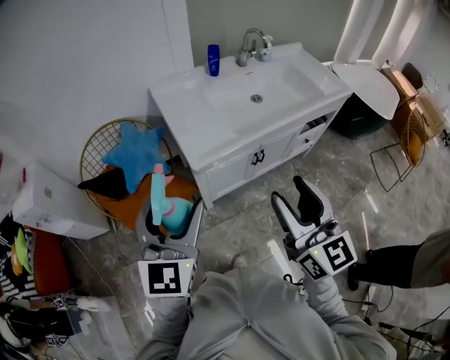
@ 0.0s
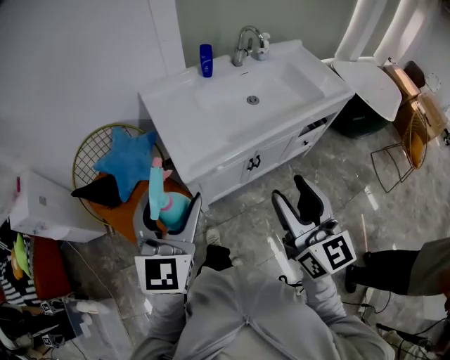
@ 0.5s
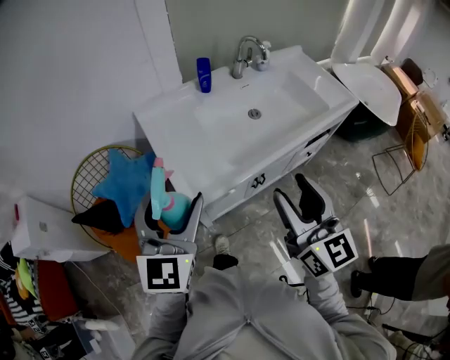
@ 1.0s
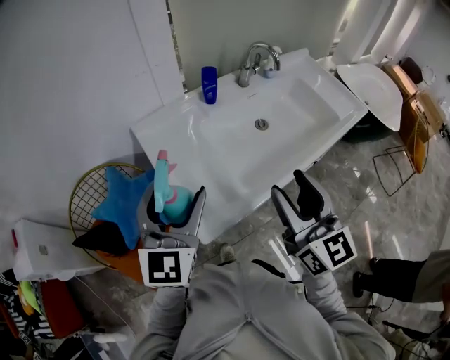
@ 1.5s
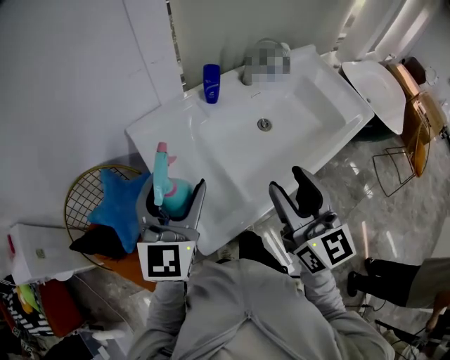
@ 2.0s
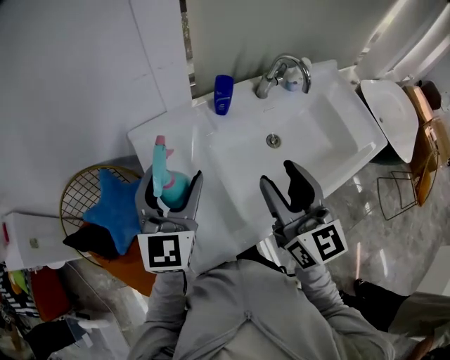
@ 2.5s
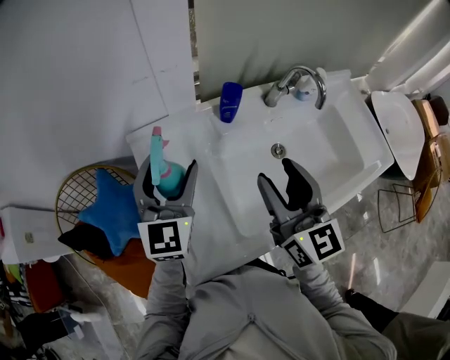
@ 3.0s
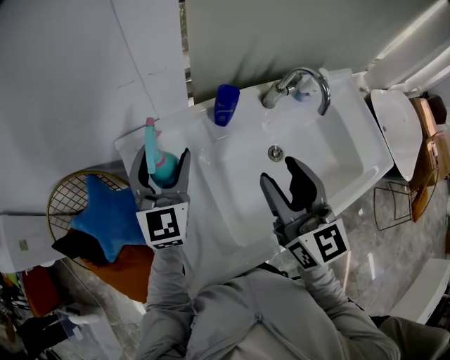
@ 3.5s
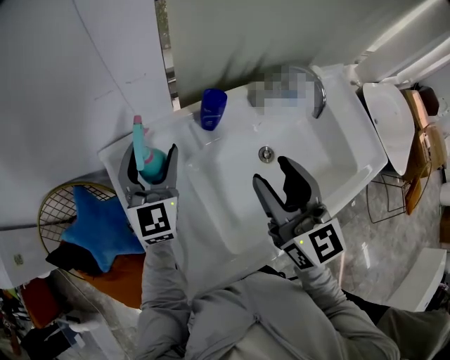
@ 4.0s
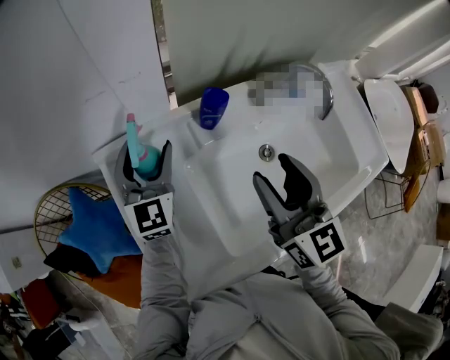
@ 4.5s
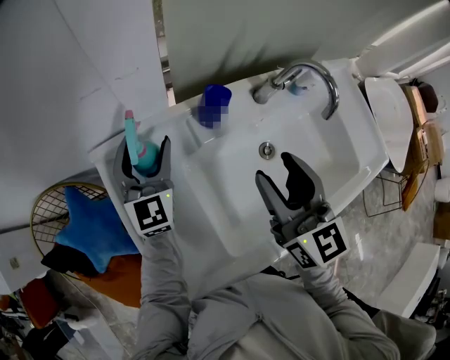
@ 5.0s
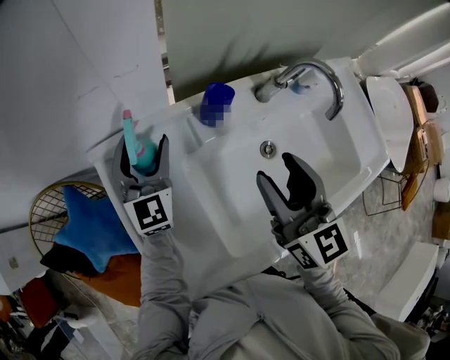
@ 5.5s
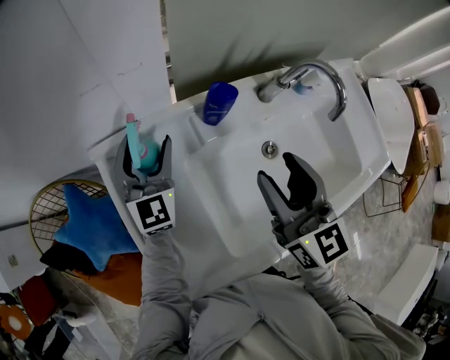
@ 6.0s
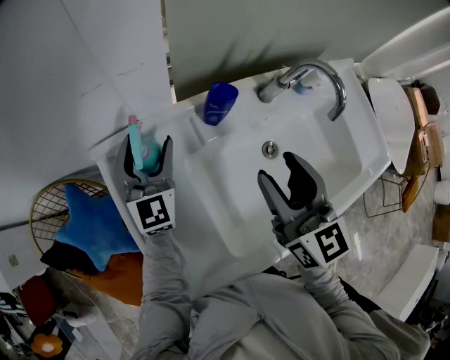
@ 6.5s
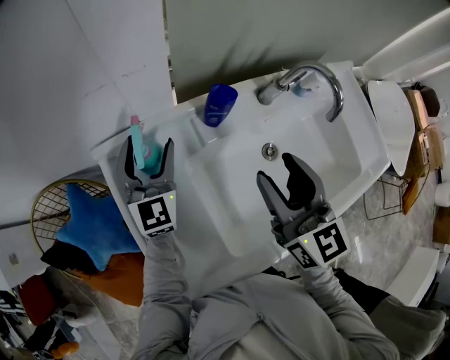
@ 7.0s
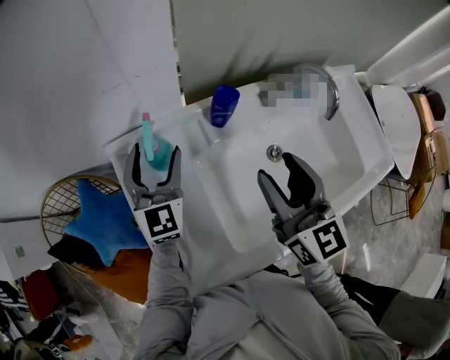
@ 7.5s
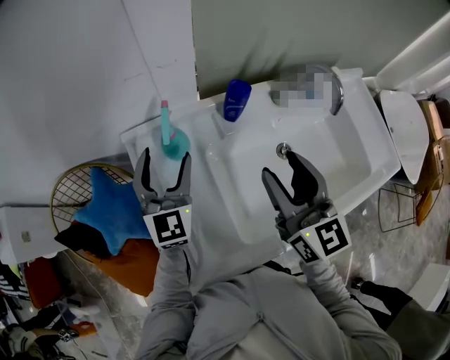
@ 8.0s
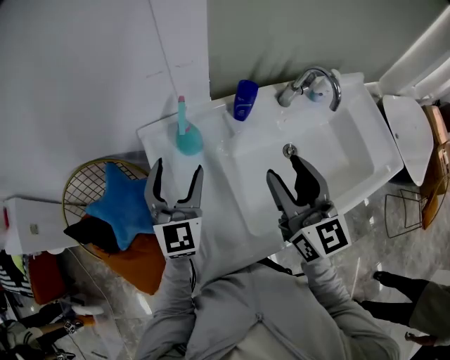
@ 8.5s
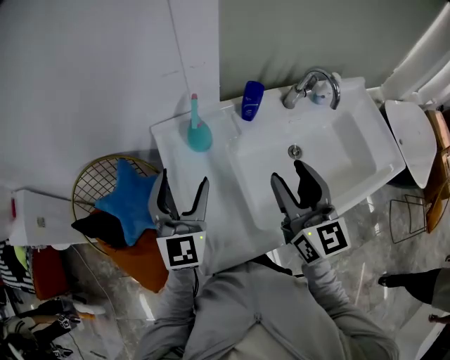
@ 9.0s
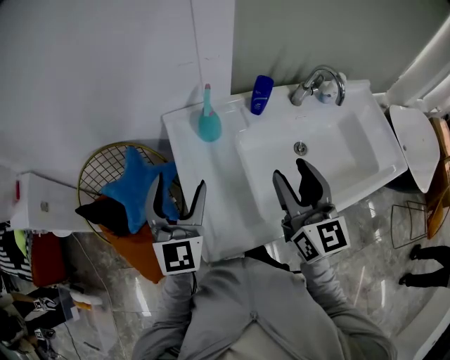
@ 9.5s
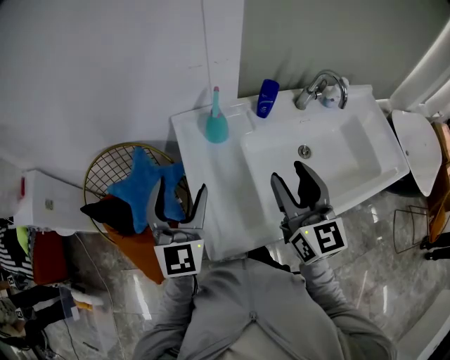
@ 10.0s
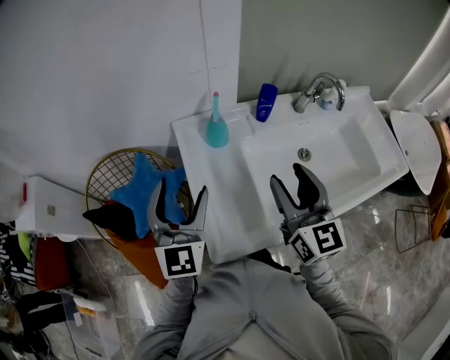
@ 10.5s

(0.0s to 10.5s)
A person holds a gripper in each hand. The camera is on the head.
0.0s - 2.0s: The two grippers go some 35 cm forward.
2.0s - 4.0s: The left gripper moves forward and downward, some 25 cm, while the right gripper shifts some 20 cm forward.
4.0s - 6.5s: The left gripper moves some 5 cm.
6.5s - 8.5s: The right gripper moves backward, approximately 5 cm. Meanwhile the left gripper travels backward and upward by approximately 15 cm.
8.5s - 10.5s: The right gripper goes roughly 10 cm backward and to the left; the left gripper shifts roughly 15 cm backward, to the left and upward.

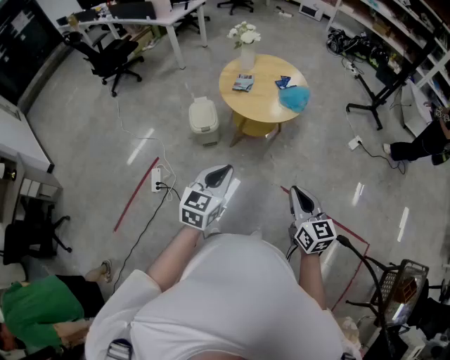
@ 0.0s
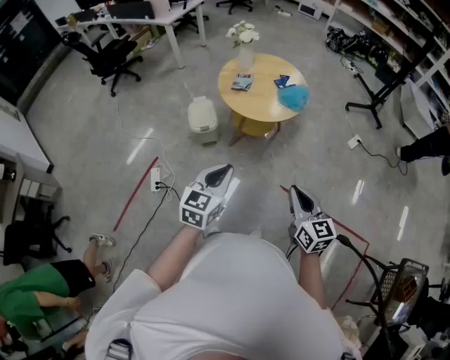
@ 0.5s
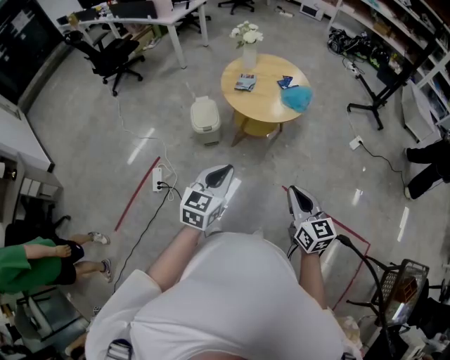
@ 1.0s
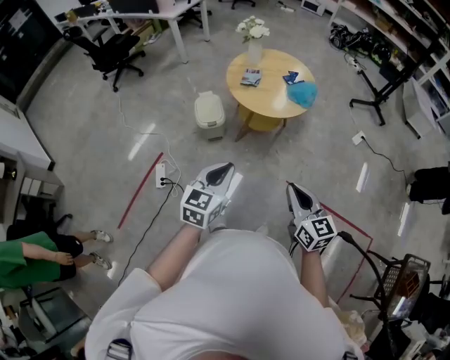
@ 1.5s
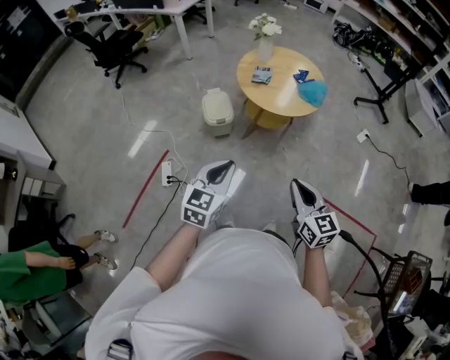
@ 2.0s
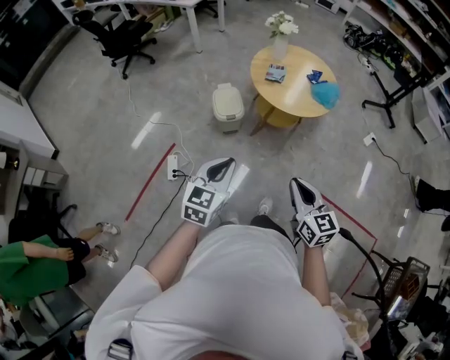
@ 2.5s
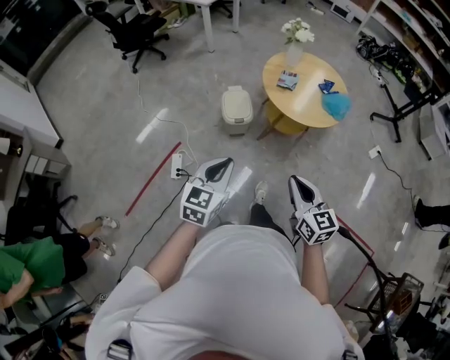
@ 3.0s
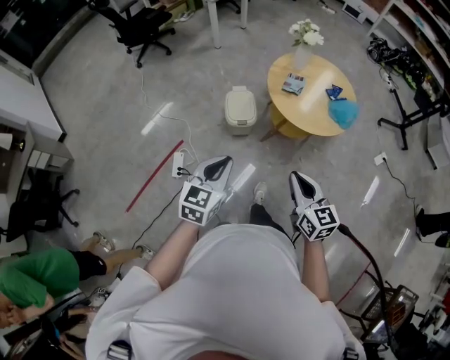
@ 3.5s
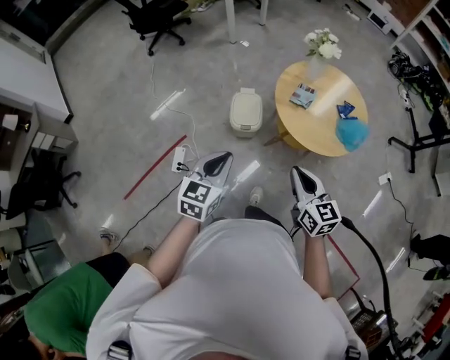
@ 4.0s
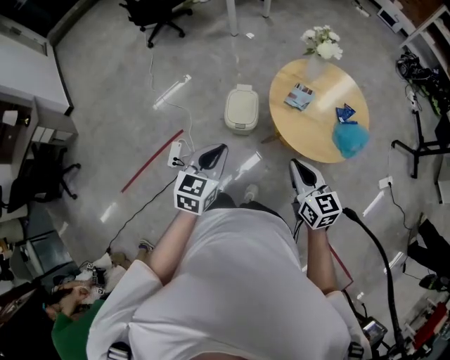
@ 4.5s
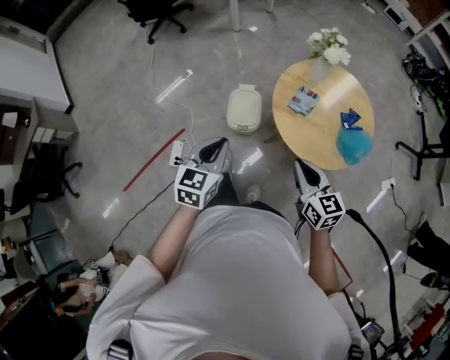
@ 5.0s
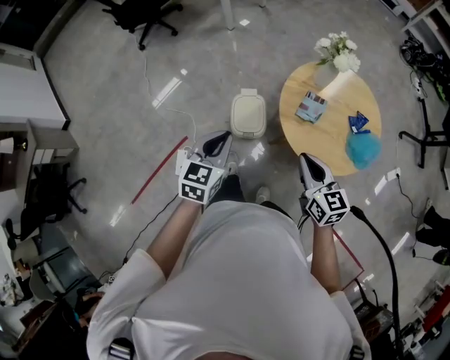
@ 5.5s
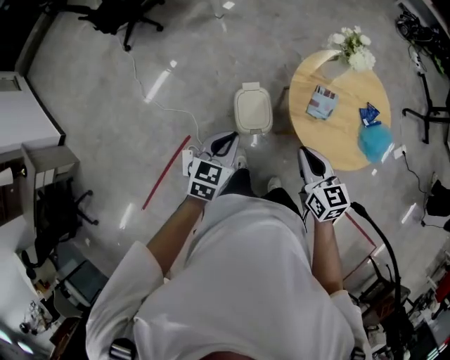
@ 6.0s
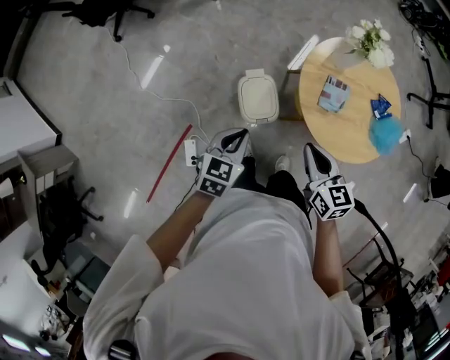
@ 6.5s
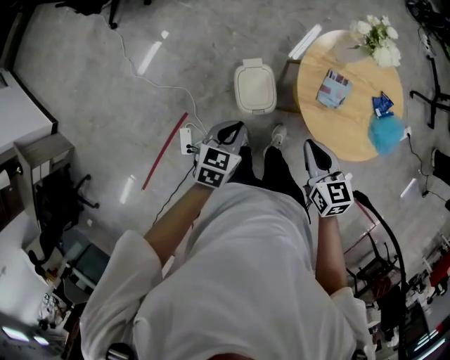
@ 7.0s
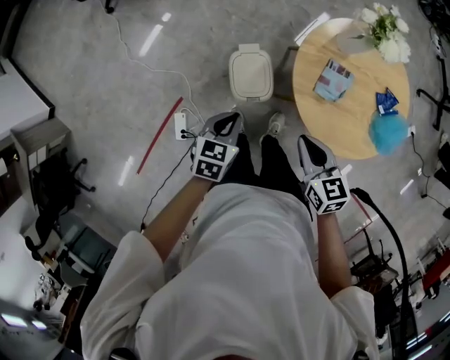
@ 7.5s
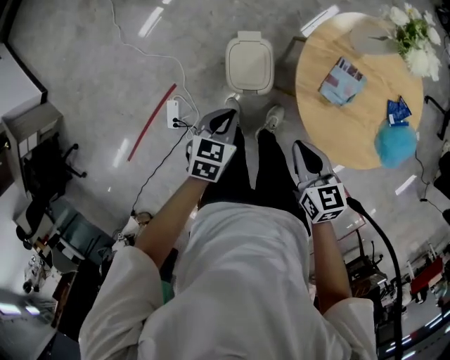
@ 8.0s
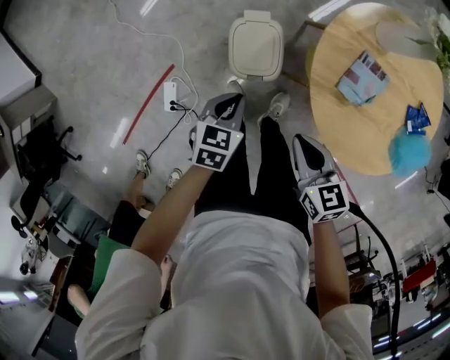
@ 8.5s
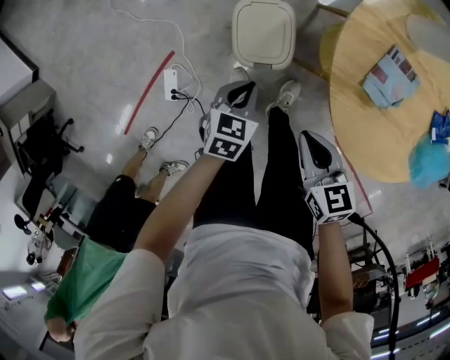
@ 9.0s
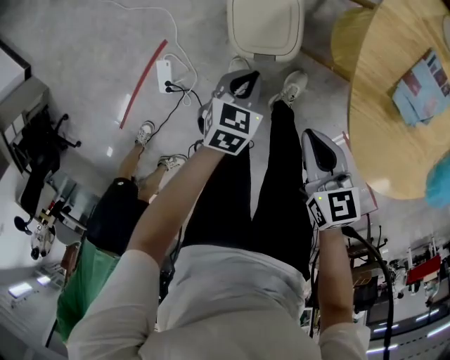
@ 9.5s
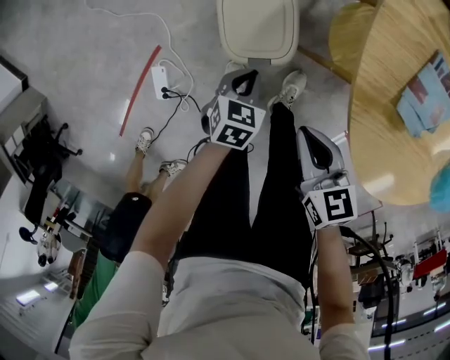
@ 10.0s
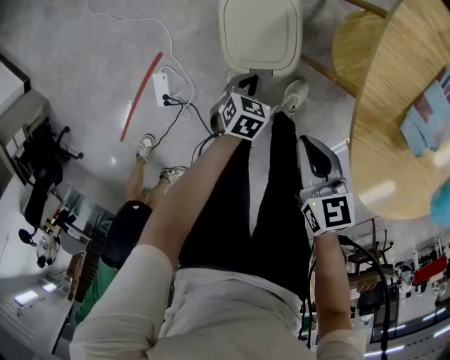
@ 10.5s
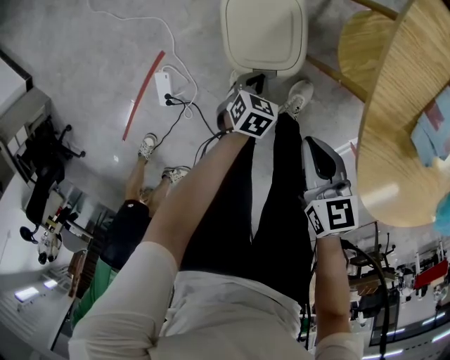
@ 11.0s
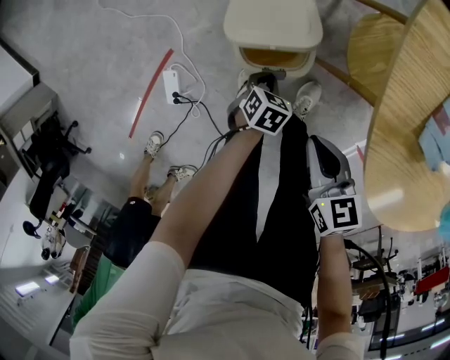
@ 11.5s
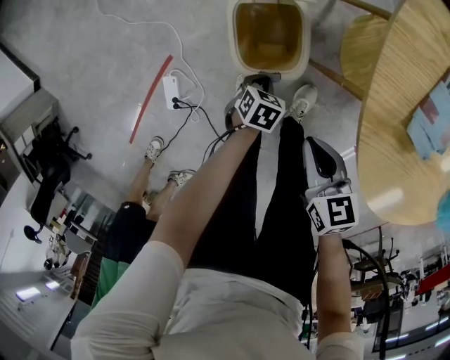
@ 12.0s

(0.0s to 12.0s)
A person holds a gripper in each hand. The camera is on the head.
0.0s - 2.0s: The grippers both shift to the left by some 15 cm.
2.0s - 4.0s: Both grippers travel together forward, about 25 cm.
4.0s - 6.0s: The grippers both shift forward by approximately 30 cm.
6.0s - 8.0s: The two grippers go roughly 20 cm downward.
8.0s - 10.0s: Both grippers travel together downward, roughly 25 cm.
10.0s - 12.0s: The left gripper heads downward, covering roughly 10 cm.

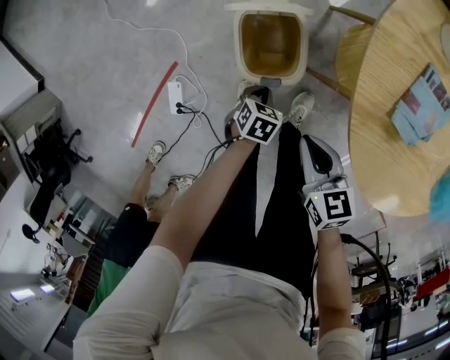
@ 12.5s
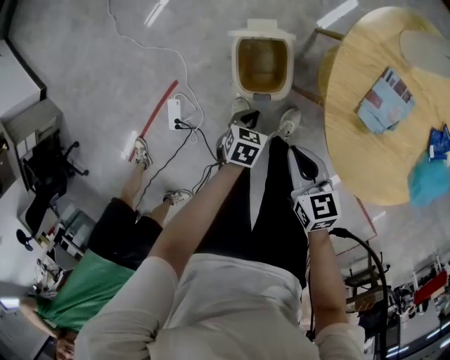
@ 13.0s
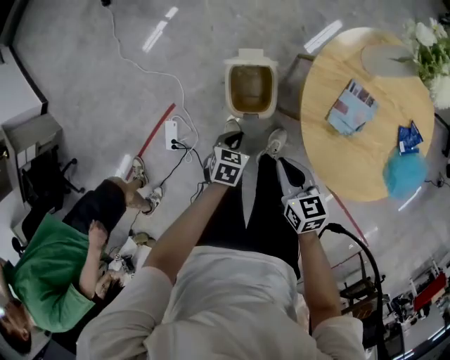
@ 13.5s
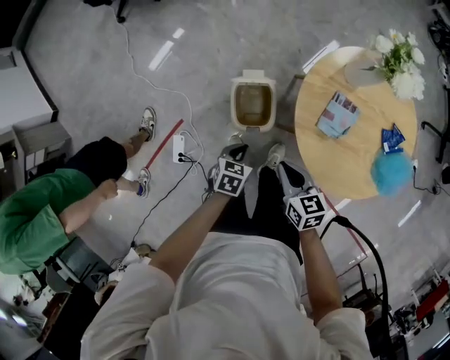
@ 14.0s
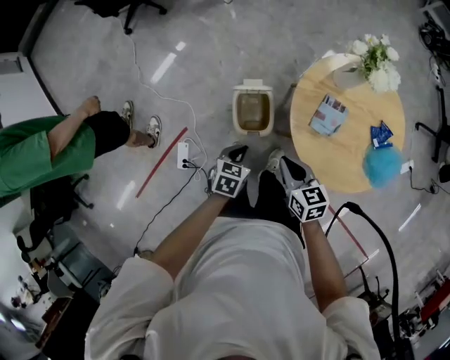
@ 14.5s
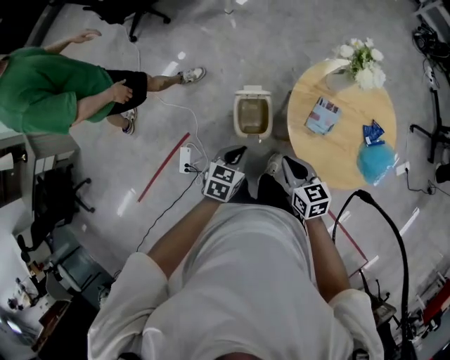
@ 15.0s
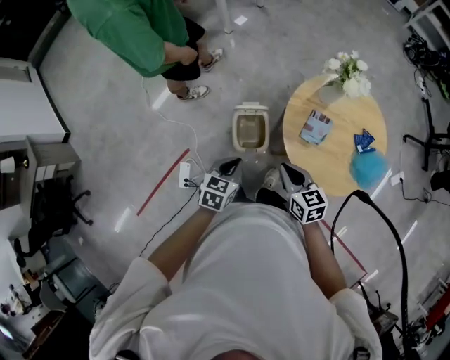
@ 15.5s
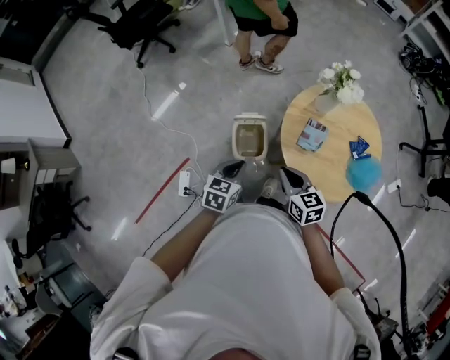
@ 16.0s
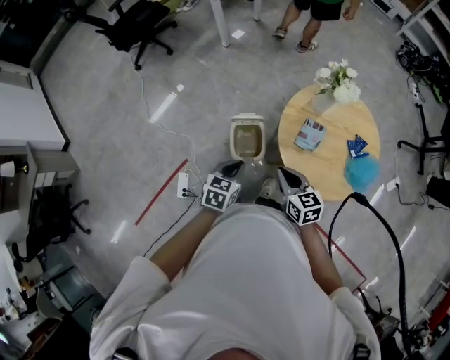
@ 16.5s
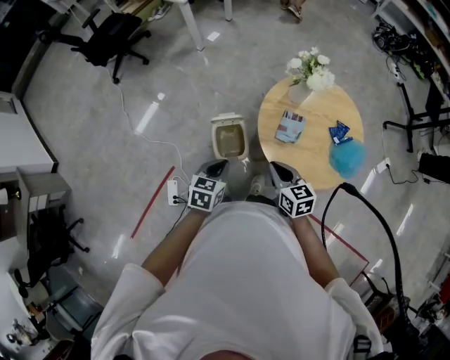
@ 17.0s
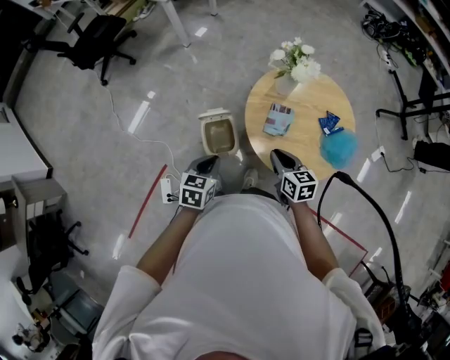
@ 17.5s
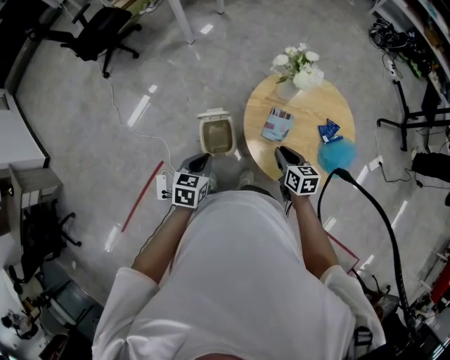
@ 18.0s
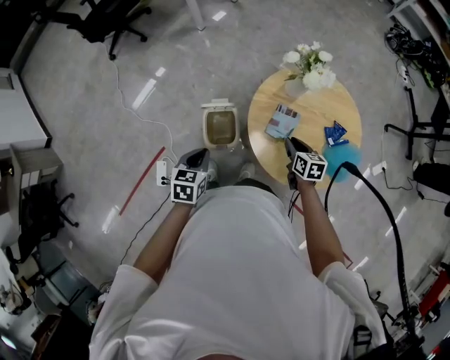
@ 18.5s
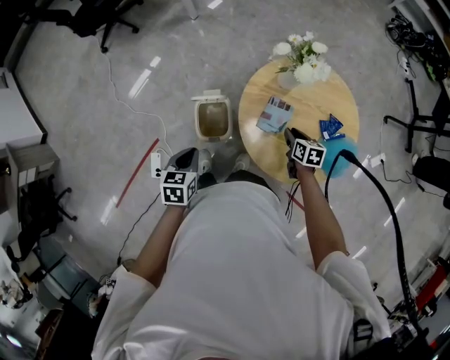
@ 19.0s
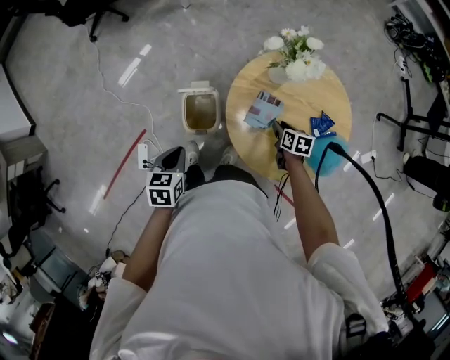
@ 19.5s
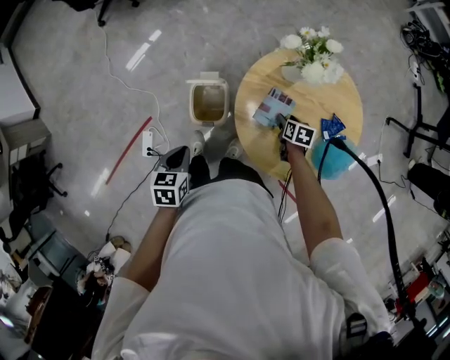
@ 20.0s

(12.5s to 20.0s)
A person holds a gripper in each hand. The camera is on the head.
12.5s - 14.5s: Both grippers move upward, some 30 cm.
14.5s - 16.5s: Both grippers travel together upward, about 10 cm.
16.5s - 18.0s: The right gripper travels to the right, forward and downward by roughly 15 cm.
18.0s - 20.0s: The right gripper travels downward, to the right and forward by about 25 cm, rotates approximately 30 degrees, and opens its fingers; the left gripper goes about 5 cm downward, and turns by about 20 degrees.
